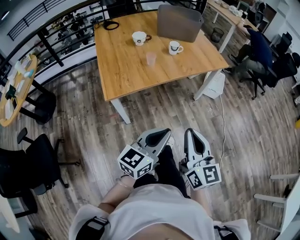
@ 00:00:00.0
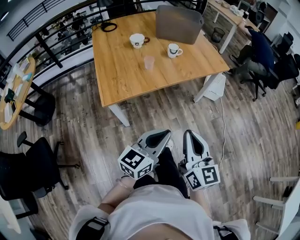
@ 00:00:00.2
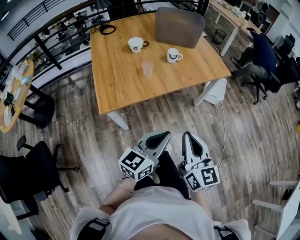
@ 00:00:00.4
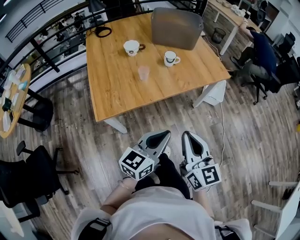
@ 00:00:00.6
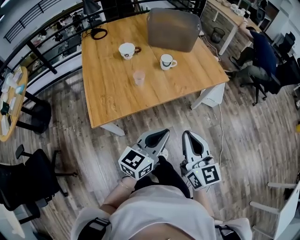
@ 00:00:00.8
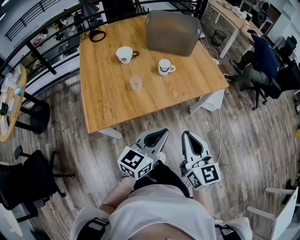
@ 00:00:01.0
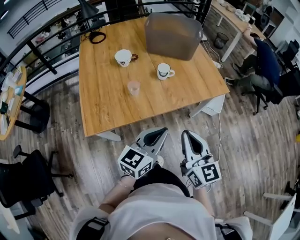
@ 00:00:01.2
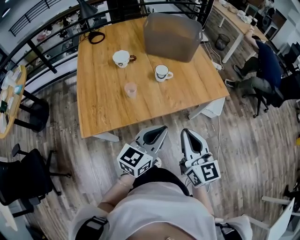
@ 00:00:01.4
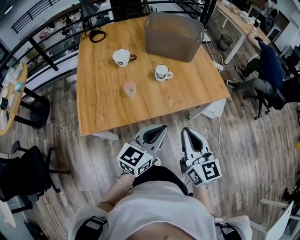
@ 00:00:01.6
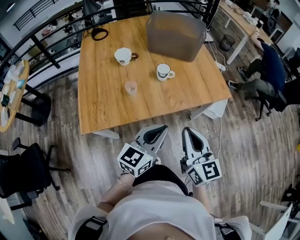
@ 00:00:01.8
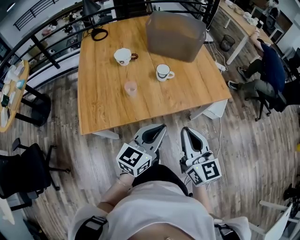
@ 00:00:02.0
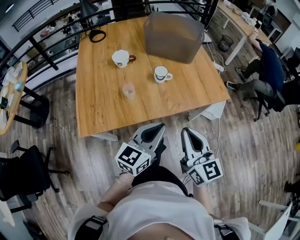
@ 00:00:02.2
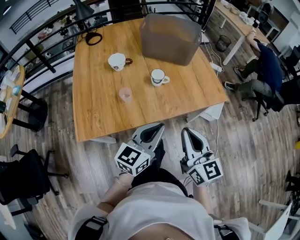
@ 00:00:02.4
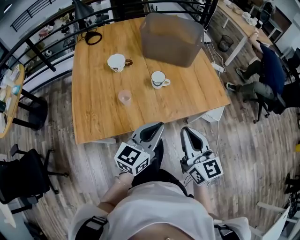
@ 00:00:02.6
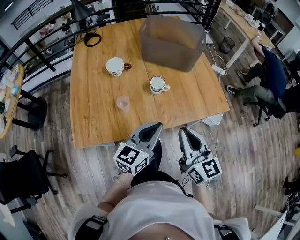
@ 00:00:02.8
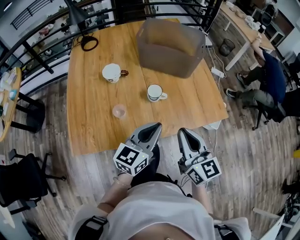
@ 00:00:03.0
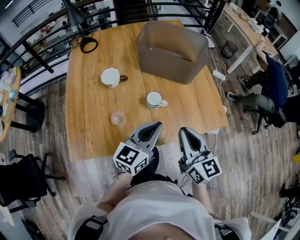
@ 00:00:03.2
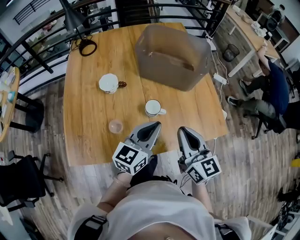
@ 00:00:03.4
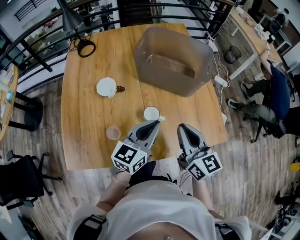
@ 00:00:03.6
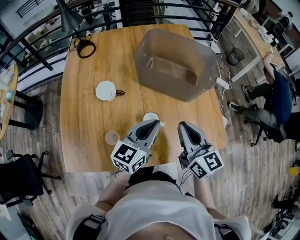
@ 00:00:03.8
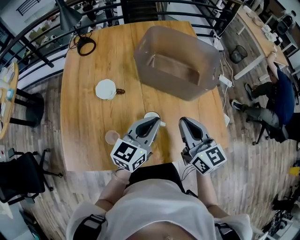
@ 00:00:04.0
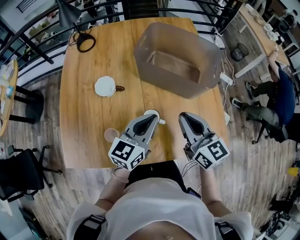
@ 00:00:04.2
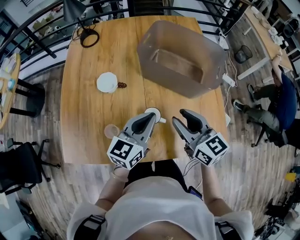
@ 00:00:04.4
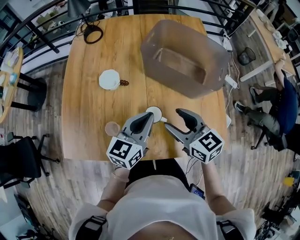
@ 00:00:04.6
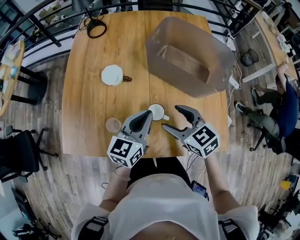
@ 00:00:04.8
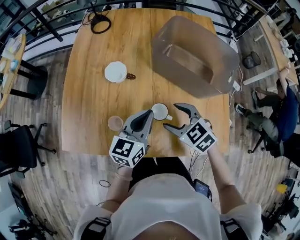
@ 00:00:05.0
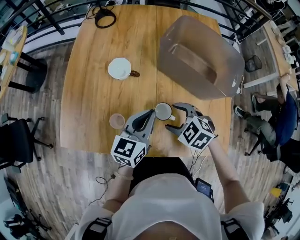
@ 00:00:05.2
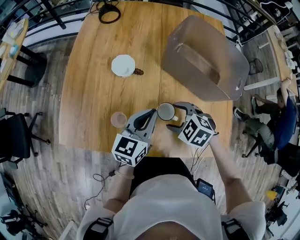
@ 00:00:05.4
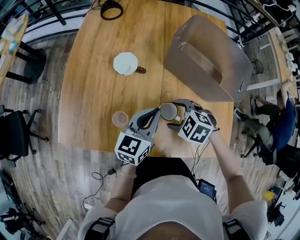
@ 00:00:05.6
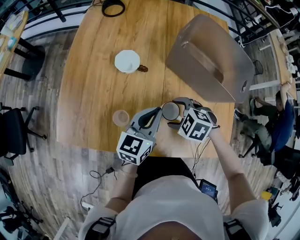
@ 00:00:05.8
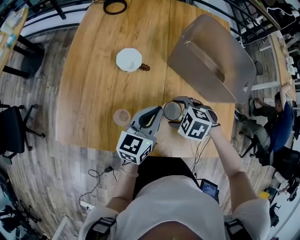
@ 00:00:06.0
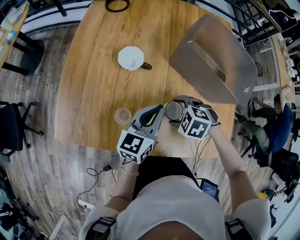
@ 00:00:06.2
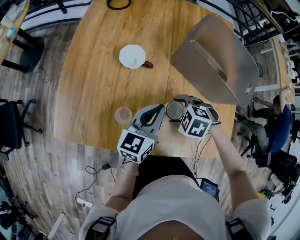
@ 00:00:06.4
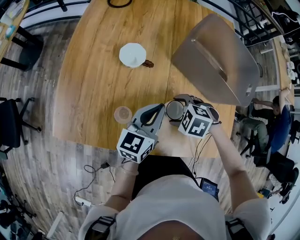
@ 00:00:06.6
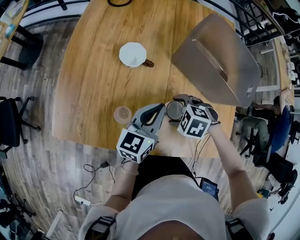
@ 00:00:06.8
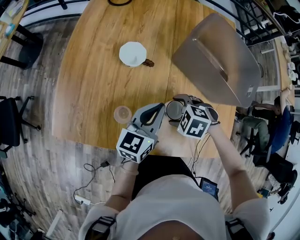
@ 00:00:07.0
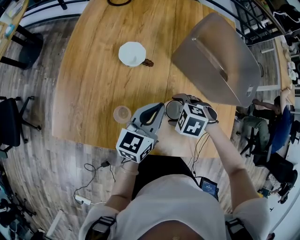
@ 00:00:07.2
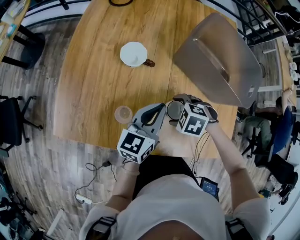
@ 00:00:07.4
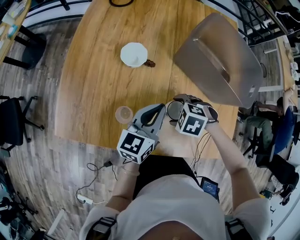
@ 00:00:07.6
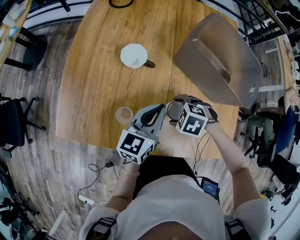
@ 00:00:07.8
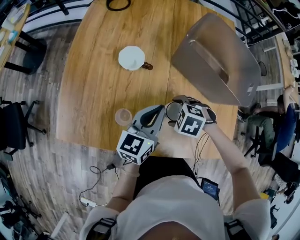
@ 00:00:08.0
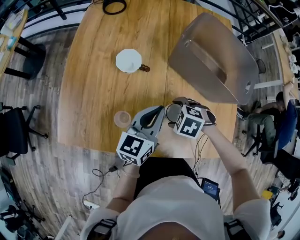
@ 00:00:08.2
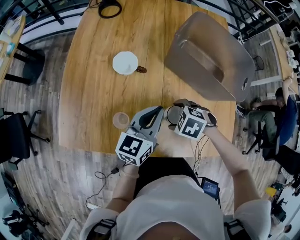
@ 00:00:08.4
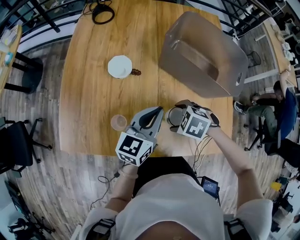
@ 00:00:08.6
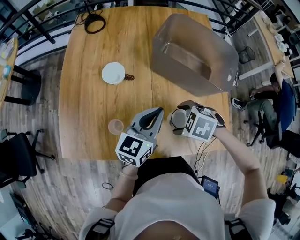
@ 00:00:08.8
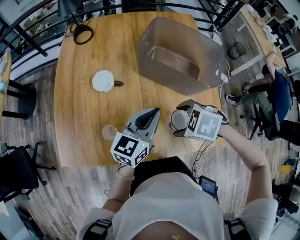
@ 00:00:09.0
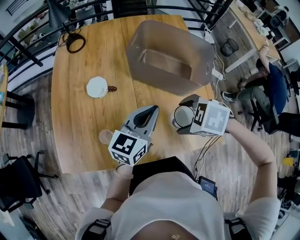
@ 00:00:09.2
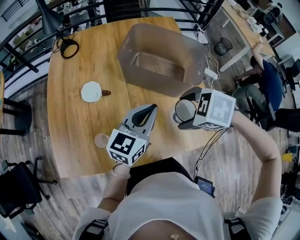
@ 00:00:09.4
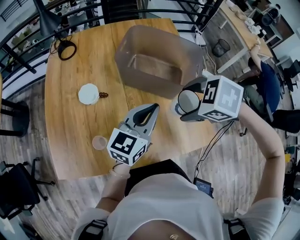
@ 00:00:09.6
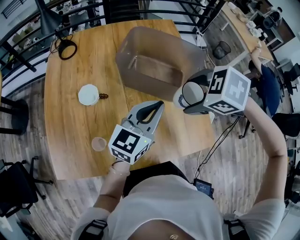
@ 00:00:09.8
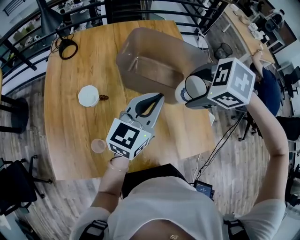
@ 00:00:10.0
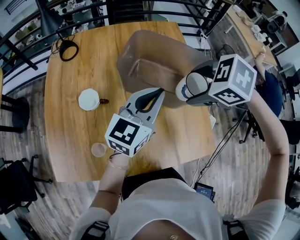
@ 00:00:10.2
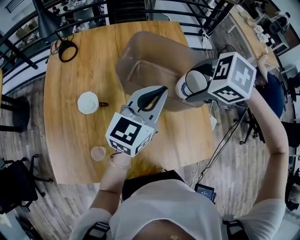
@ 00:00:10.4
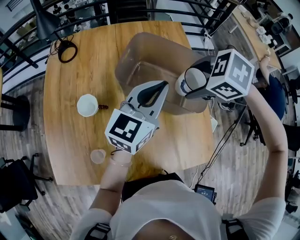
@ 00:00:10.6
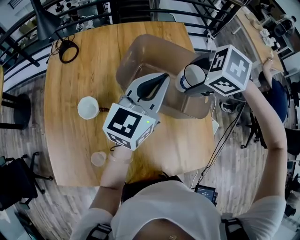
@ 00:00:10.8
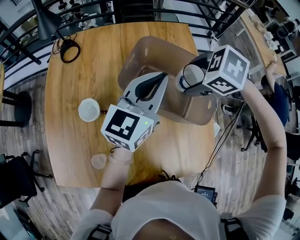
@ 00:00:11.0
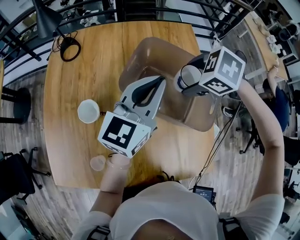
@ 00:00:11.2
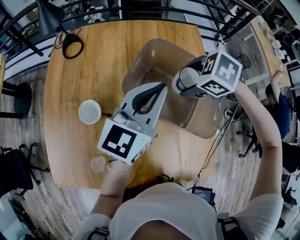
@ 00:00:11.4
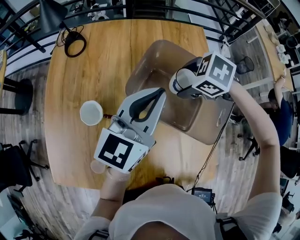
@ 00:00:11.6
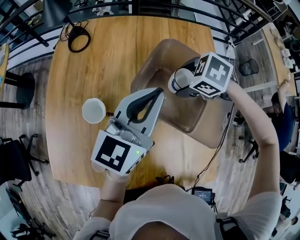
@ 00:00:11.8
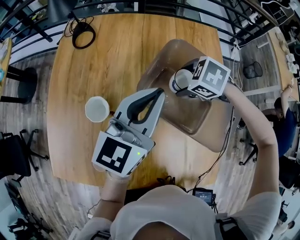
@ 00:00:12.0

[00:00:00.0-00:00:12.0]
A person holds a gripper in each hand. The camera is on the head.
00:00:00.0 to 00:00:01.6: The two grippers go about 30 cm forward.
00:00:01.6 to 00:00:03.0: Both grippers travel together forward, approximately 15 cm.
00:00:03.0 to 00:00:04.4: Both grippers travel together forward, some 20 cm. The right gripper changes its angle by approximately 20 degrees, and opens its fingers.
00:00:04.4 to 00:00:06.0: The right gripper moves downward, about 15 cm, points its fingers roughly 60 degrees further downward, and opens up, while the left gripper moves about 10 cm.
00:00:06.0 to 00:00:07.6: There are only small adjustments of the grippers.
00:00:07.6 to 00:00:09.0: The right gripper shifts approximately 10 cm upward, and turns by approximately 20 degrees; the left gripper shifts by some 10 cm.
00:00:09.0 to 00:00:10.4: The right gripper moves approximately 25 cm. Meanwhile the left gripper moves some 20 cm.
00:00:10.4 to 00:00:12.0: The right gripper shifts some 25 cm forward and downward, while the left gripper moves forward, about 15 cm.

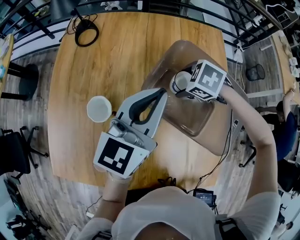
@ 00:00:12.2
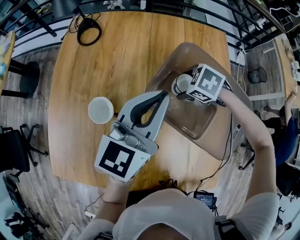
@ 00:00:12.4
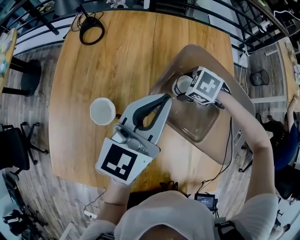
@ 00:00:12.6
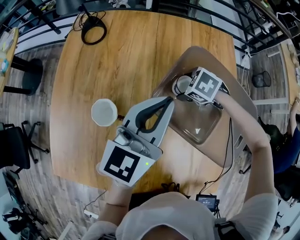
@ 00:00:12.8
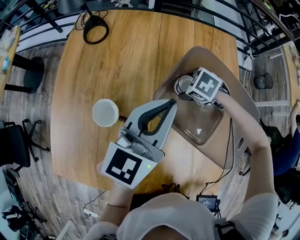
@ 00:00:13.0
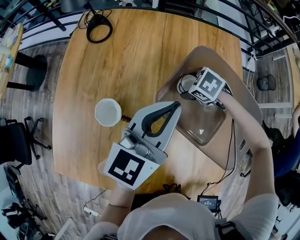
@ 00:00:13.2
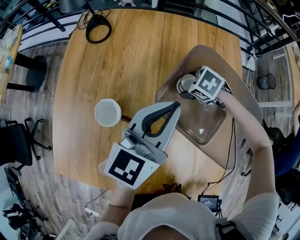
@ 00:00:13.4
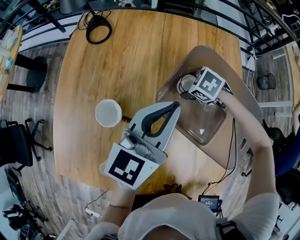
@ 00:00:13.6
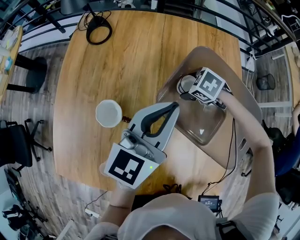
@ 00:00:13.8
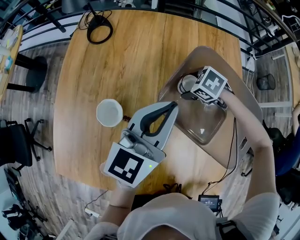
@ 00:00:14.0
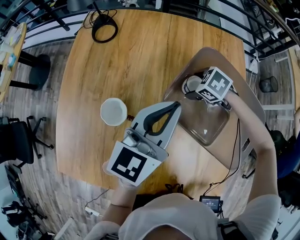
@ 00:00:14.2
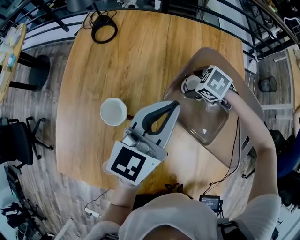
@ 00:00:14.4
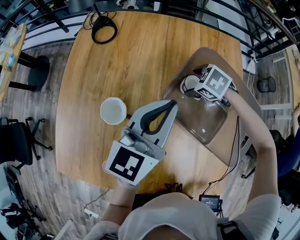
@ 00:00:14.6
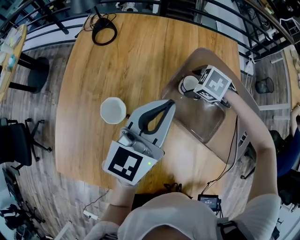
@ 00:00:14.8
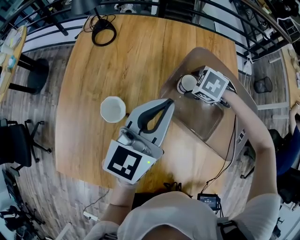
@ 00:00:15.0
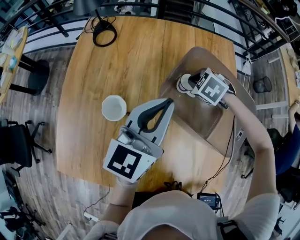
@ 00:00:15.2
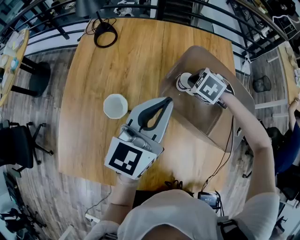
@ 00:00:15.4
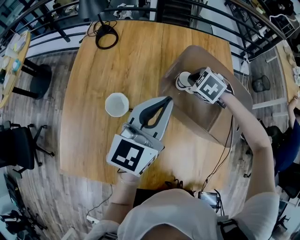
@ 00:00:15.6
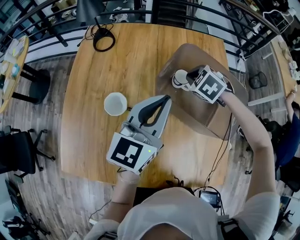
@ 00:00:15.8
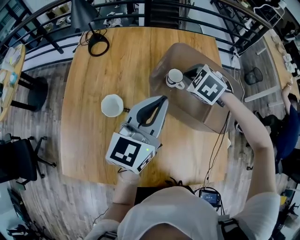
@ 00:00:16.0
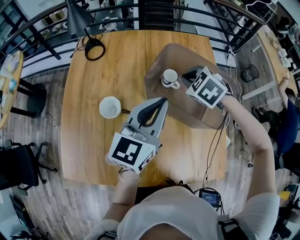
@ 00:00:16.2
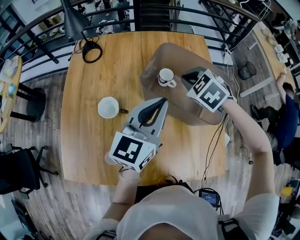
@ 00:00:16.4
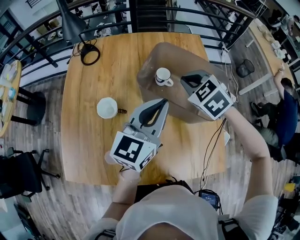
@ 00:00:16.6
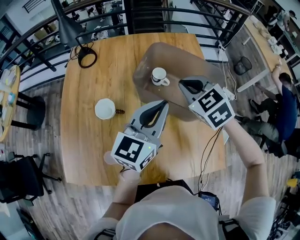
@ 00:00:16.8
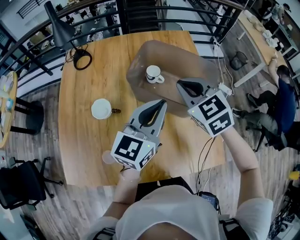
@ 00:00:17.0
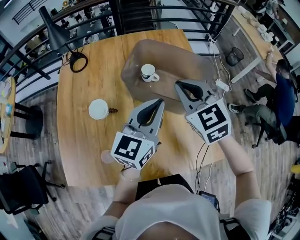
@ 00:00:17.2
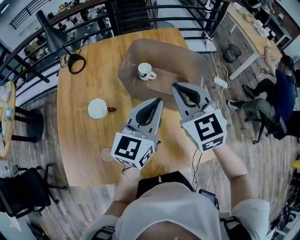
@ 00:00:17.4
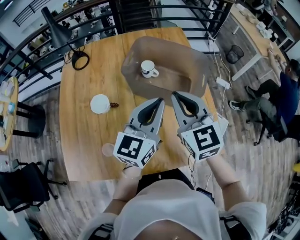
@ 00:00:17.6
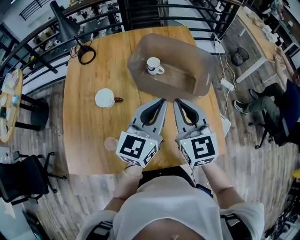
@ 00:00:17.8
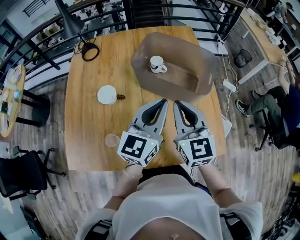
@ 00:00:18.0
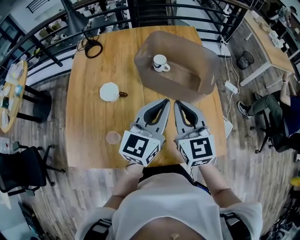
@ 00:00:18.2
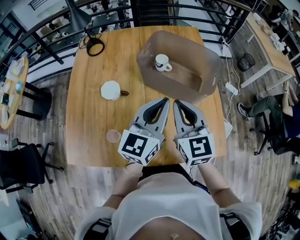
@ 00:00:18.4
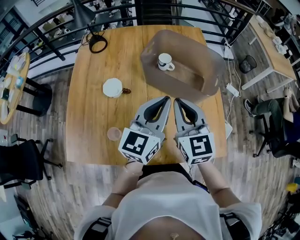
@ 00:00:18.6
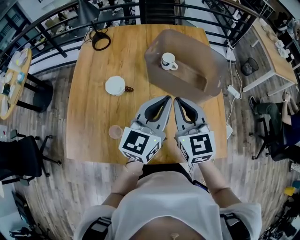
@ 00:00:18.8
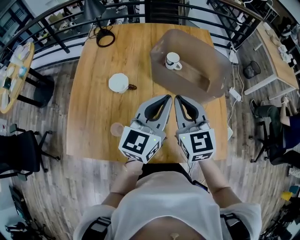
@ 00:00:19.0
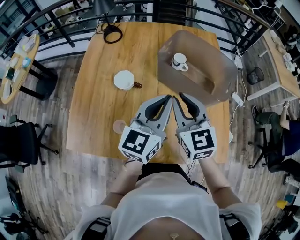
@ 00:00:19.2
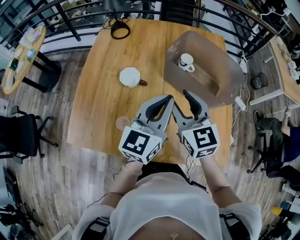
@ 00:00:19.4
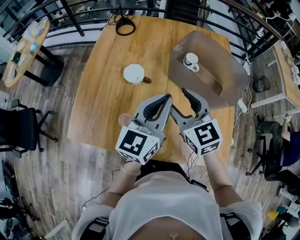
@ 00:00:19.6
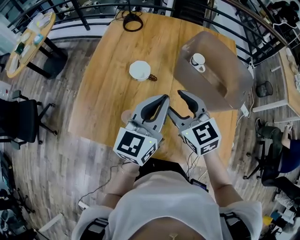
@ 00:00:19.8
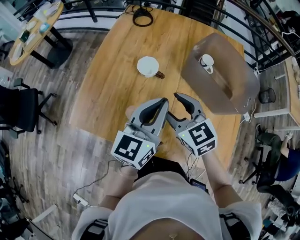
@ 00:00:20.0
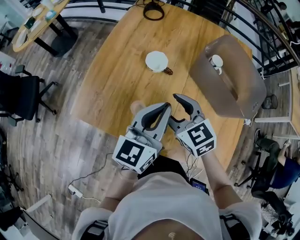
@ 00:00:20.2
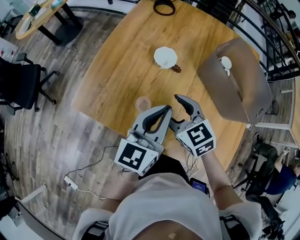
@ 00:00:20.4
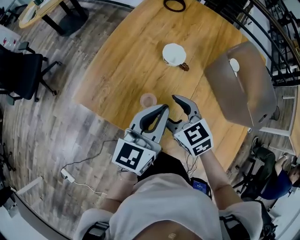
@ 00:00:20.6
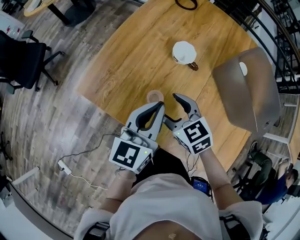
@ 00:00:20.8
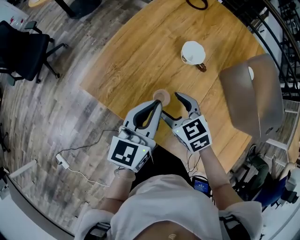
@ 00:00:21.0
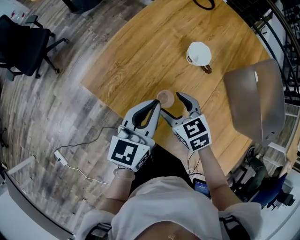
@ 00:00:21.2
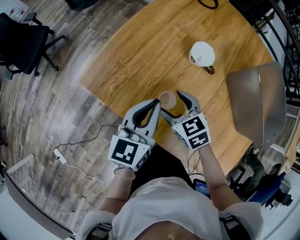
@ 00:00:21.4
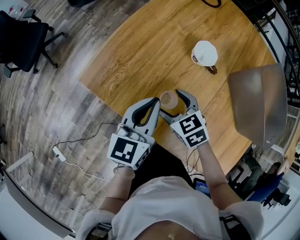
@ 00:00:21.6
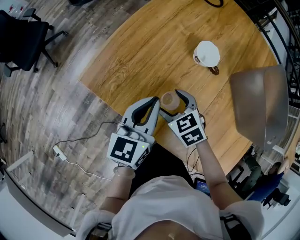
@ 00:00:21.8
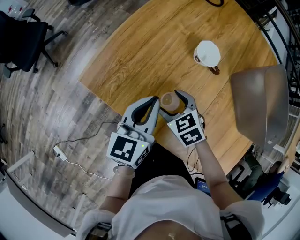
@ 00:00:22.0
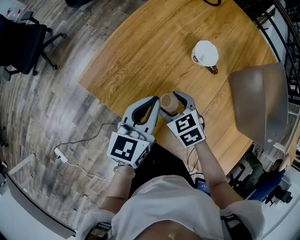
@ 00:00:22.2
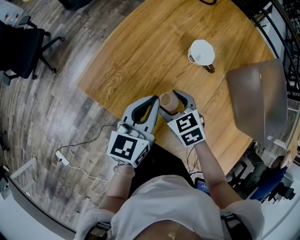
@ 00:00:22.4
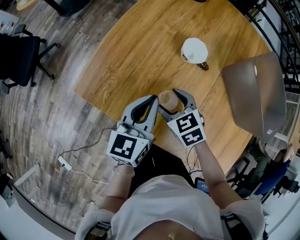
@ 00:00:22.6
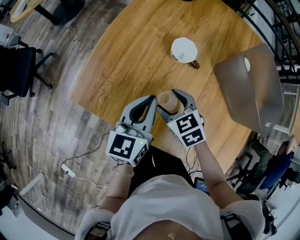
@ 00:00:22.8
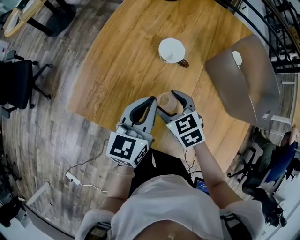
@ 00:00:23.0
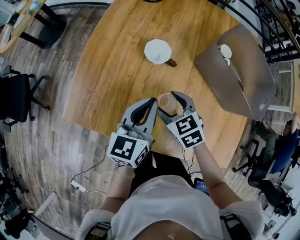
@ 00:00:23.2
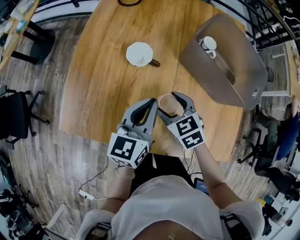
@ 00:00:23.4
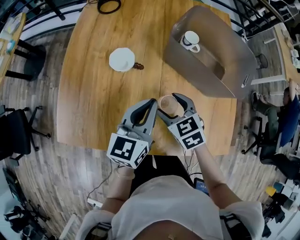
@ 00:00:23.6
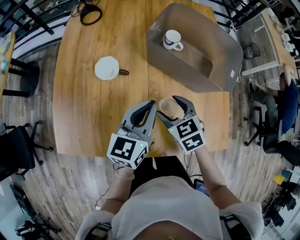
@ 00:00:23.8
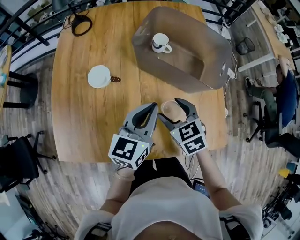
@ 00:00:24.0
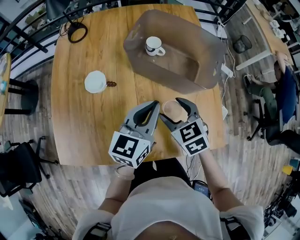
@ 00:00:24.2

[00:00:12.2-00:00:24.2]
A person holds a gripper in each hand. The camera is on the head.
00:00:12.2 to 00:00:13.8: The right gripper heads downward, covering some 5 cm.
00:00:13.8 to 00:00:15.2: The right gripper heads upward, covering approximately 5 cm, and closes its fingers.
00:00:15.2 to 00:00:16.6: The left gripper moves backward and to the right, approximately 10 cm; the right gripper goes roughly 20 cm upward and backward, and changes its angle by roughly 30 degrees.
00:00:16.6 to 00:00:18.2: The right gripper heads backward, covering roughly 20 cm, and points its fingers roughly 40 degrees further upward. The left gripper travels backward by roughly 10 cm.
00:00:18.2 to 00:00:19.8: The left gripper changes place by approximately 10 cm; the right gripper changes place by approximately 15 cm, swivels about 40 degrees, and opens up.
00:00:19.8 to 00:00:21.2: The right gripper moves downward, some 15 cm, and turns by some 30 degrees; the left gripper ends up some 20 cm from where it was, and turns by approximately 30 degrees.
00:00:21.2 to 00:00:22.6: There are only small adjustments of the grippers.
00:00:22.6 to 00:00:24.2: The right gripper ends up some 30 cm from where it was, and turns by approximately 40 degrees. The left gripper moves about 30 cm, and turns by roughly 40 degrees.
